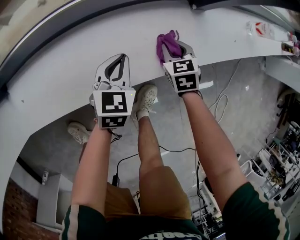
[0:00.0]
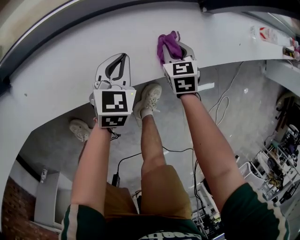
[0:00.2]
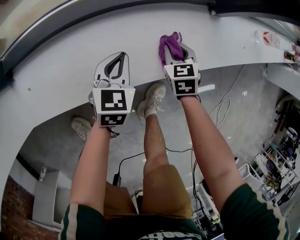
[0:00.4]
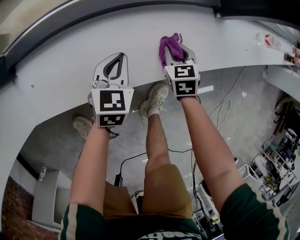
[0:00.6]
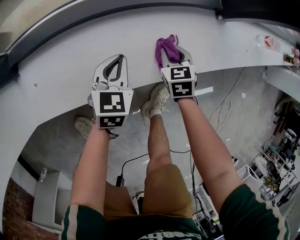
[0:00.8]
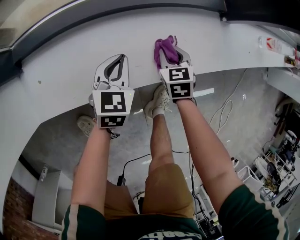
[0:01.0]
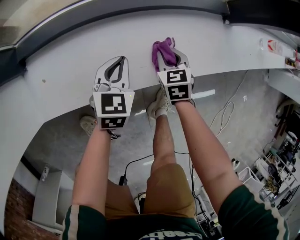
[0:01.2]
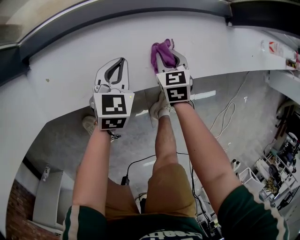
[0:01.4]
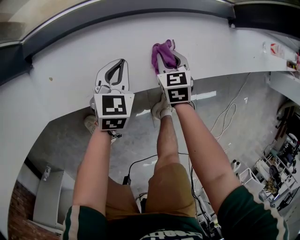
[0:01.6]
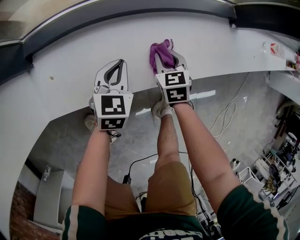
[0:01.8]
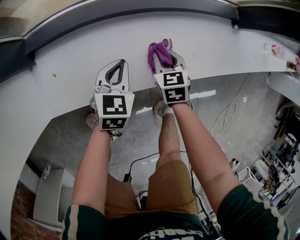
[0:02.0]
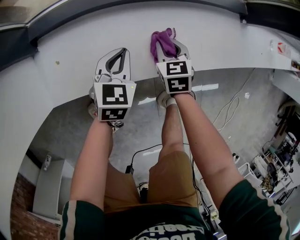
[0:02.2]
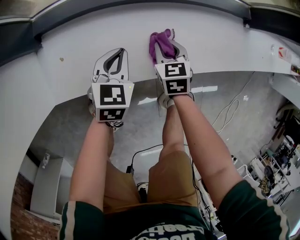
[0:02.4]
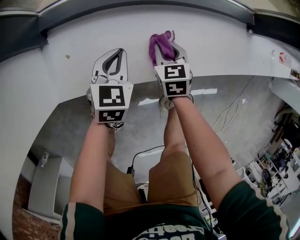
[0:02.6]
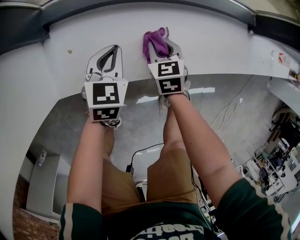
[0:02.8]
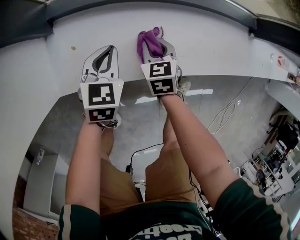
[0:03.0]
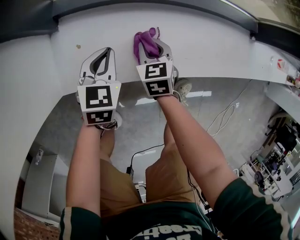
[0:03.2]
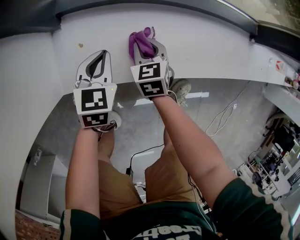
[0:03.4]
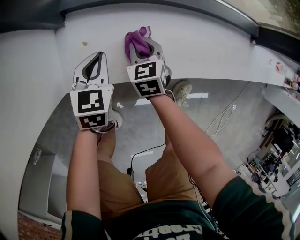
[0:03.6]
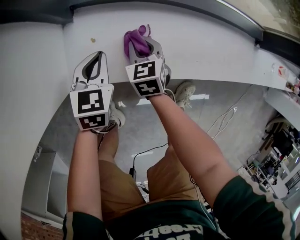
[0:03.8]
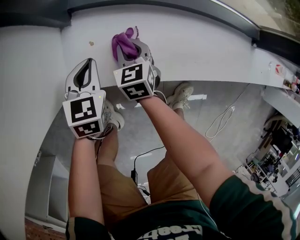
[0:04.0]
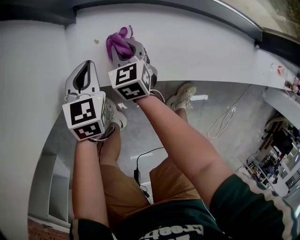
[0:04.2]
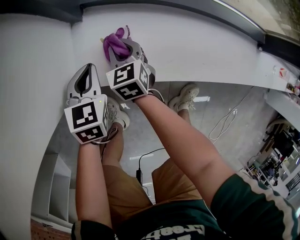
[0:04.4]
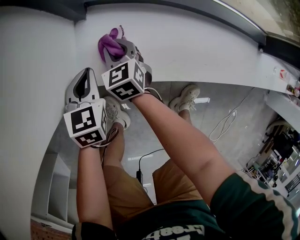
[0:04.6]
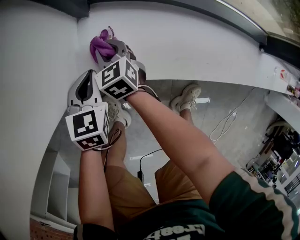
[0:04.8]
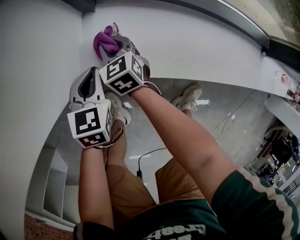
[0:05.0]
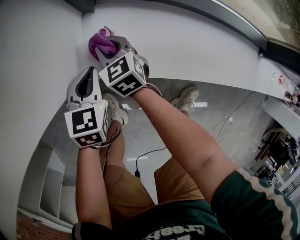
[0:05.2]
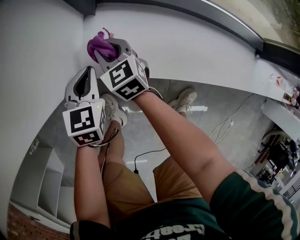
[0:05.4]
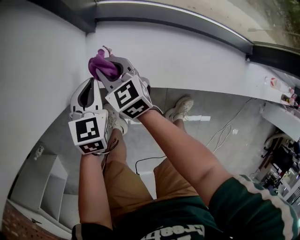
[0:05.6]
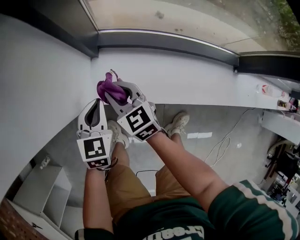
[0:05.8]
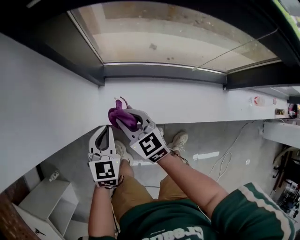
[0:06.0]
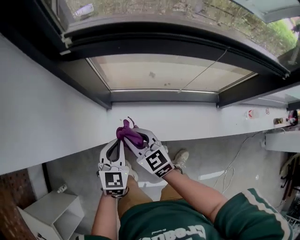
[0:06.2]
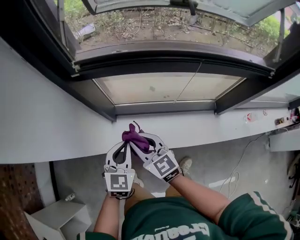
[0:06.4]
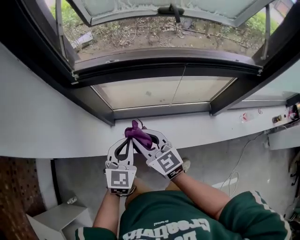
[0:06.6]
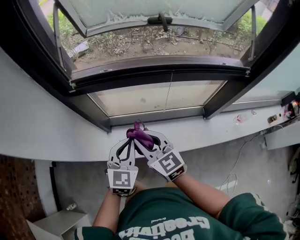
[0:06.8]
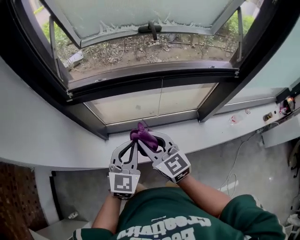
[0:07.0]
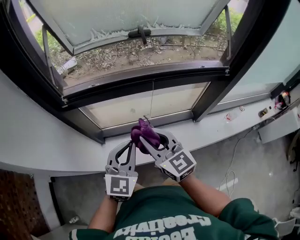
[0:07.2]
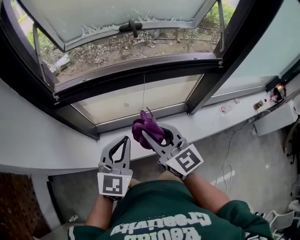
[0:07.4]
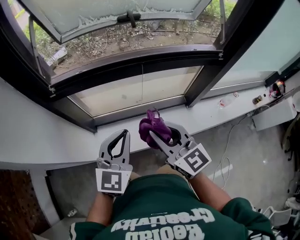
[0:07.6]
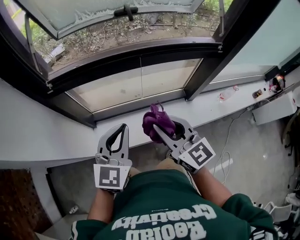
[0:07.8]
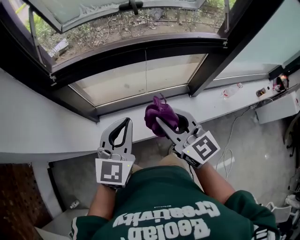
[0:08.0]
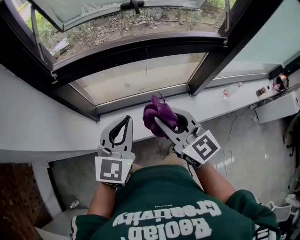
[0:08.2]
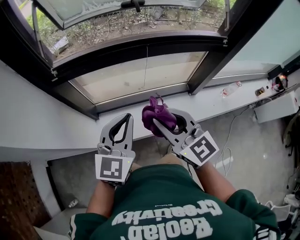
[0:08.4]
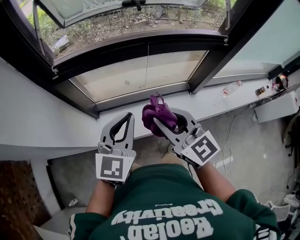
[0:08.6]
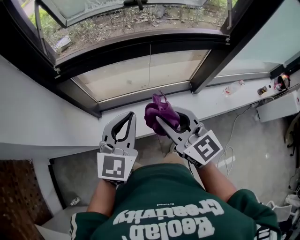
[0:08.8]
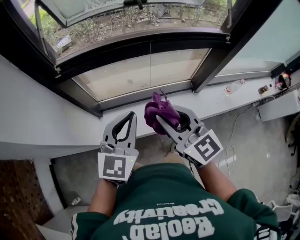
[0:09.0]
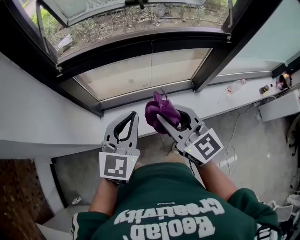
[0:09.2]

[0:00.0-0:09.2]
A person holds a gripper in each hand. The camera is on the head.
0:00.0 to 0:01.6: The grippers both shift to the left by about 20 cm.
0:01.6 to 0:03.0: Both grippers travel together to the left, some 15 cm.
0:03.0 to 0:04.6: Both grippers move to the left, about 20 cm. The left gripper turns by about 20 degrees.
0:04.6 to 0:06.2: Both grippers move upward, some 40 cm. The left gripper changes its angle by about 20 degrees, while the right gripper rotates approximately 30 degrees.
0:06.2 to 0:07.6: Both grippers travel together upward and to the right, some 35 cm. The left gripper swivels roughly 30 degrees; the right gripper swivels about 30 degrees.
0:07.6 to 0:09.2: There are only small adjustments of the grippers.

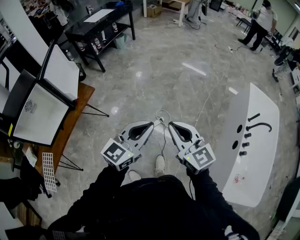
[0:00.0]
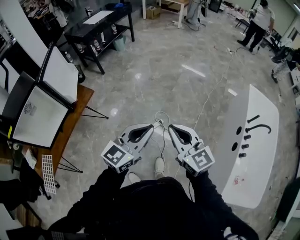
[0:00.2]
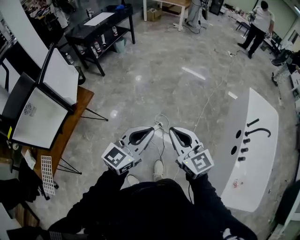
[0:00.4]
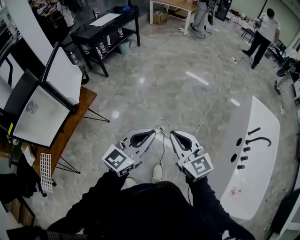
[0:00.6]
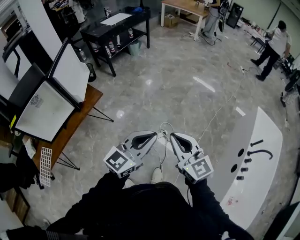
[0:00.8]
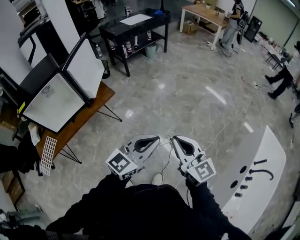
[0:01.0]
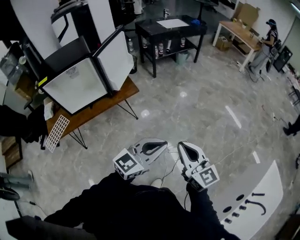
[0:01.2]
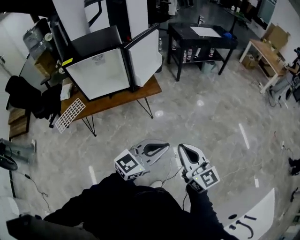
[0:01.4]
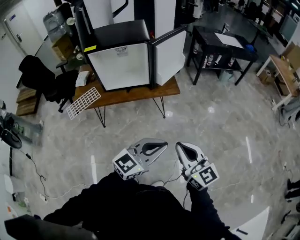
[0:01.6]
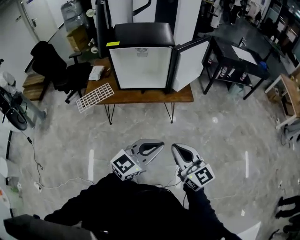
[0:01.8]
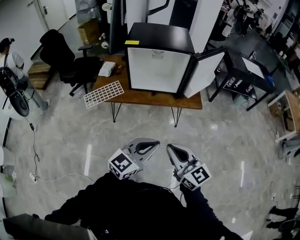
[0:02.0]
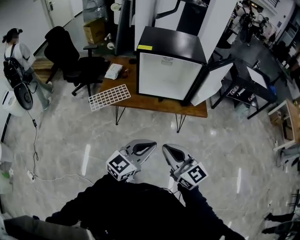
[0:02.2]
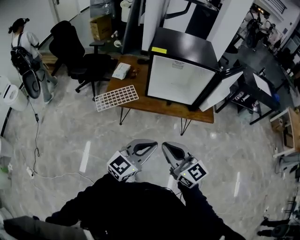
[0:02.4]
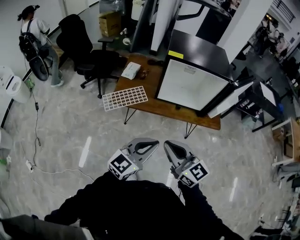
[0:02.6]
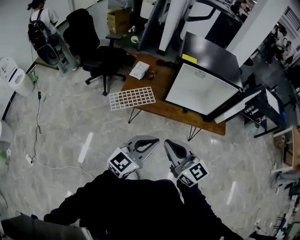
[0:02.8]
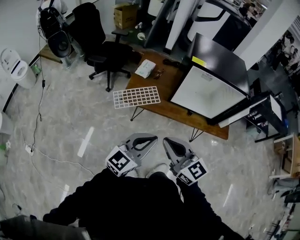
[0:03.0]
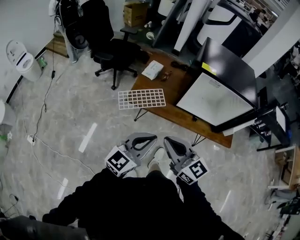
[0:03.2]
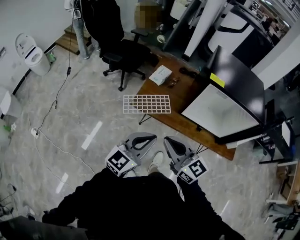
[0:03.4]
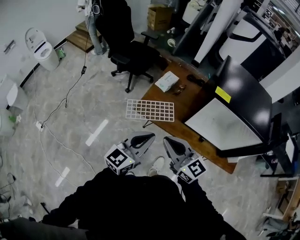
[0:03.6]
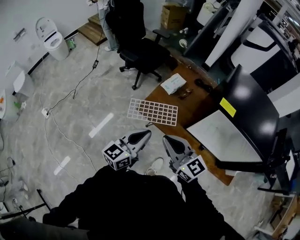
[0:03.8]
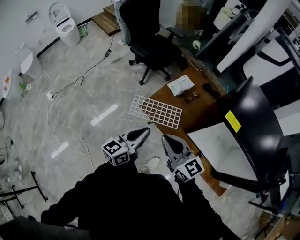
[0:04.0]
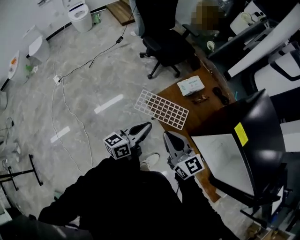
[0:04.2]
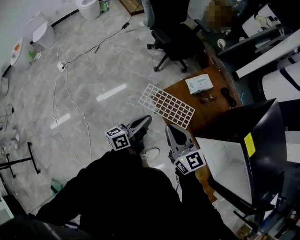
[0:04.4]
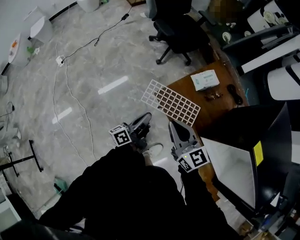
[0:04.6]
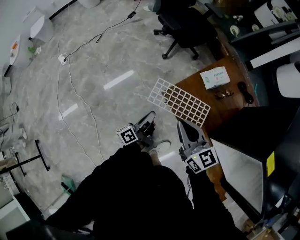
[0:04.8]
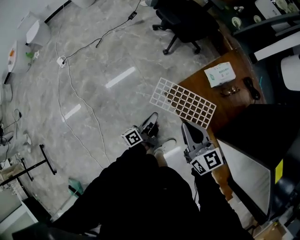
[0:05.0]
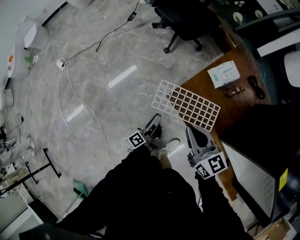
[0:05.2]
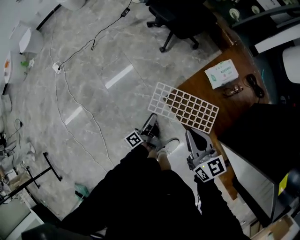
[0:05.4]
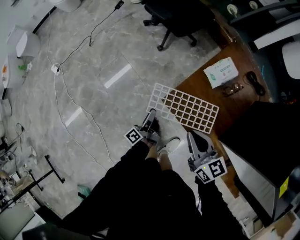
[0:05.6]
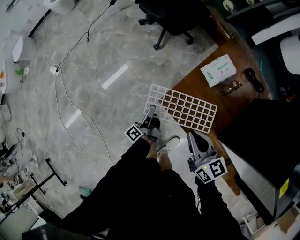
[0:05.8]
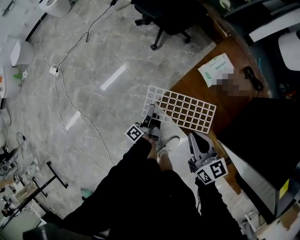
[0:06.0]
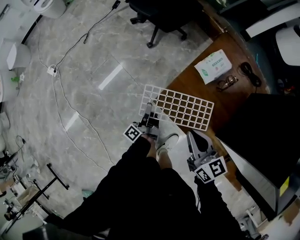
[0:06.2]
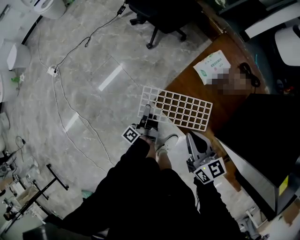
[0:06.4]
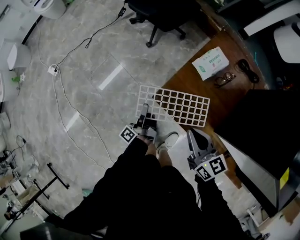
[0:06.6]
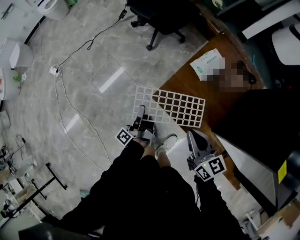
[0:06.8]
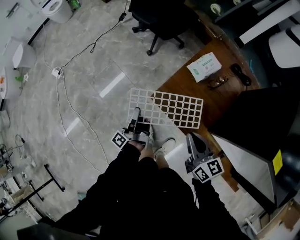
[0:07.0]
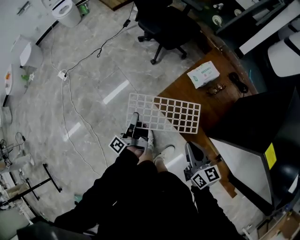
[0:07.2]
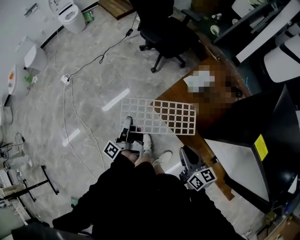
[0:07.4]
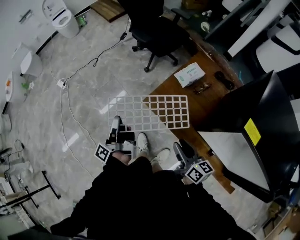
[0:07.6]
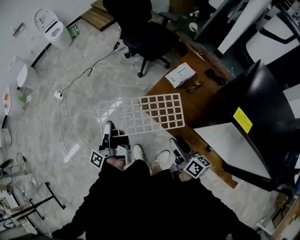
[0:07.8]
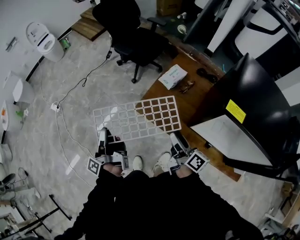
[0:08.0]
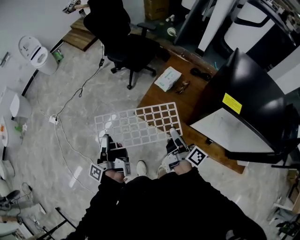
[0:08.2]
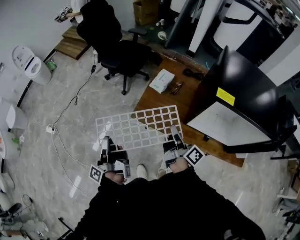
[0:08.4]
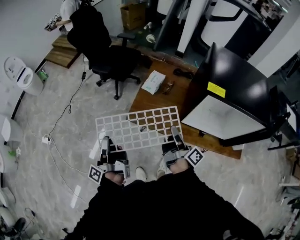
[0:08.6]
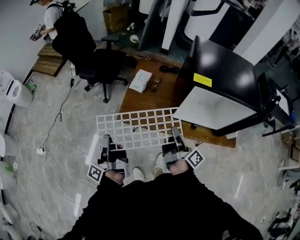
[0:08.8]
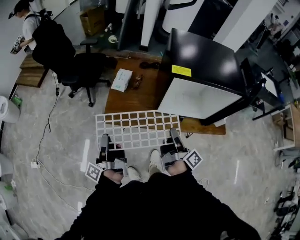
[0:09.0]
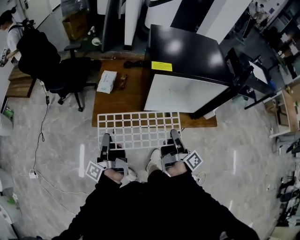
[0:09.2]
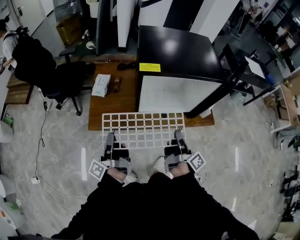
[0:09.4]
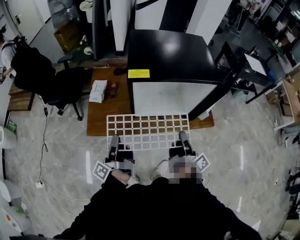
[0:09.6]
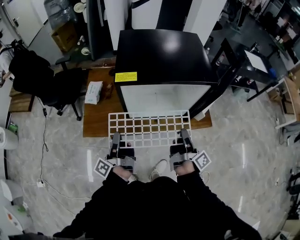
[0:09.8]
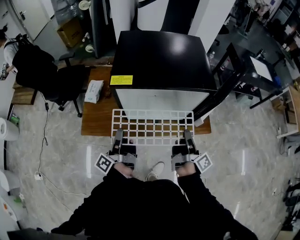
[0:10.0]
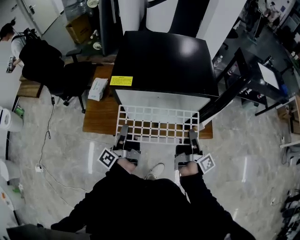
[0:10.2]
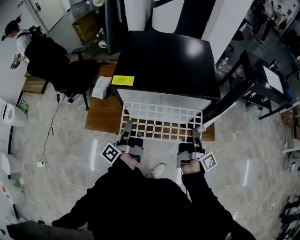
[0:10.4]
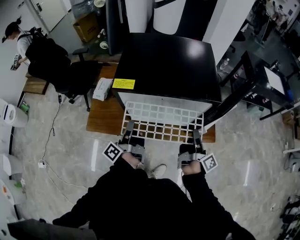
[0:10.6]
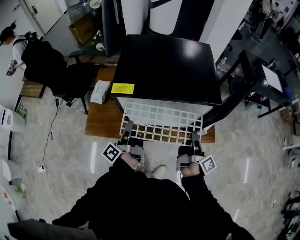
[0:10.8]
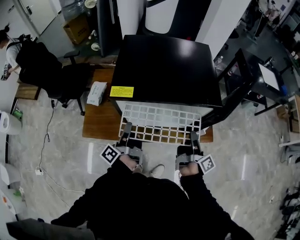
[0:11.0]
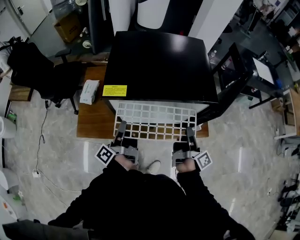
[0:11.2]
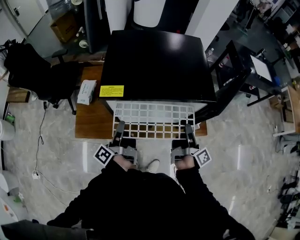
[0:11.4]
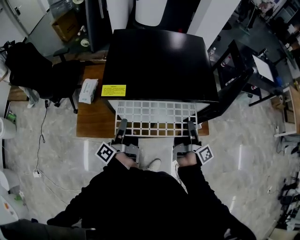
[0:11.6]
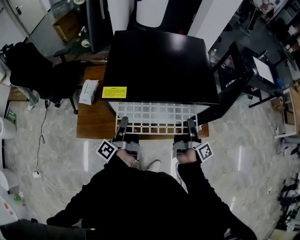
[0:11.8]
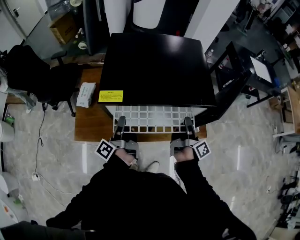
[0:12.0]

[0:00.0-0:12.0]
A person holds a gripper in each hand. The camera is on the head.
0:00.0 to 0:01.6: The left gripper shifts by approximately 25 cm, and swivels some 40 degrees. Meanwhile the right gripper changes place by approximately 30 cm, and swivels some 50 degrees.
0:01.6 to 0:03.0: The pair of grippers is taken approximately 50 cm. The right gripper turns by about 30 degrees, while the left gripper swivels some 30 degrees.
0:03.0 to 0:04.4: The left gripper ends up some 35 cm from where it was, and changes its angle by roughly 70 degrees. The right gripper shifts by approximately 30 cm, and changes its angle by roughly 30 degrees.
0:04.4 to 0:06.0: The right gripper heads downward and forward, covering approximately 20 cm, and turns by some 30 degrees, while the left gripper is displaced downward and forward by about 35 cm, changes its angle by roughly 40 degrees, and opens its fingers.
0:06.0 to 0:07.6: The right gripper travels backward and upward by about 15 cm, and opens, while the left gripper moves upward and backward, about 30 cm, and closes its fingers.
0:07.6 to 0:09.0: The left gripper moves some 15 cm, and swivels roughly 40 degrees; the right gripper changes place by roughly 15 cm, rotates some 70 degrees, and closes its fingers.
0:09.0 to 0:10.4: The right gripper is displaced to the right by approximately 35 cm. The left gripper goes approximately 35 cm to the right and forward.
0:10.4 to 0:12.0: Both grippers travel together forward, some 10 cm.

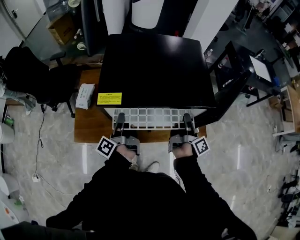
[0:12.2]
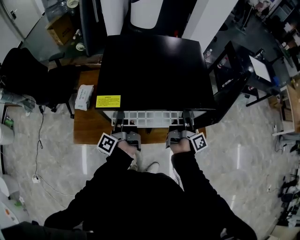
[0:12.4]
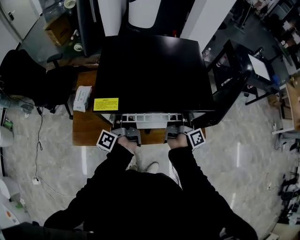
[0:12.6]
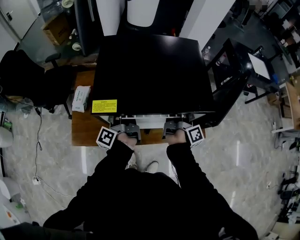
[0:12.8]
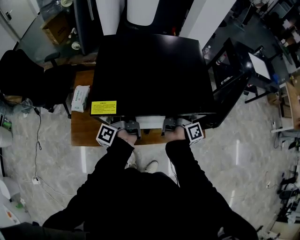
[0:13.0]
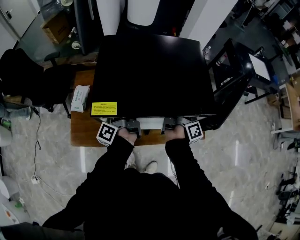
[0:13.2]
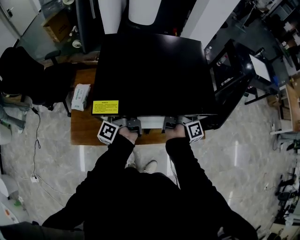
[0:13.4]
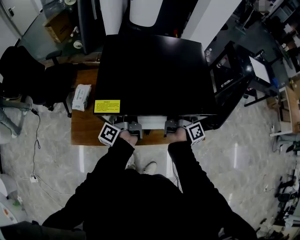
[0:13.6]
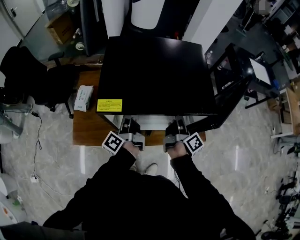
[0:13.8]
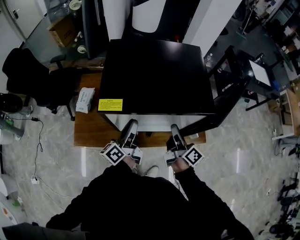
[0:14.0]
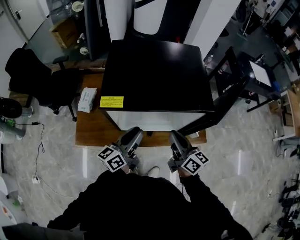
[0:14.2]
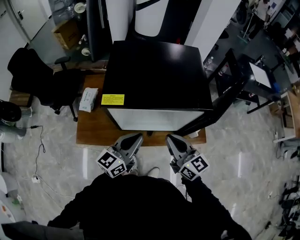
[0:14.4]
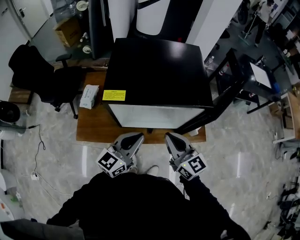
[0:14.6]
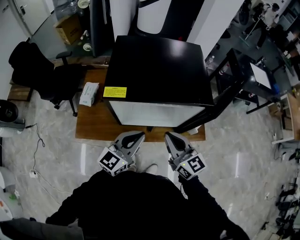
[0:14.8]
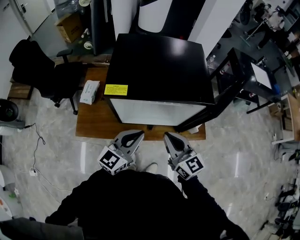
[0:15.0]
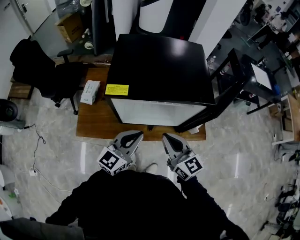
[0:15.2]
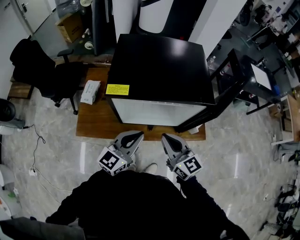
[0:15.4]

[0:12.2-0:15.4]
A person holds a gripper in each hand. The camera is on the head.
0:12.2 to 0:13.8: The left gripper heads forward, covering roughly 5 cm, while the right gripper opens.
0:13.8 to 0:15.4: The right gripper goes roughly 20 cm backward, to the left and upward, rolls counterclockwise, seen from behind, by roughly 60 degrees, and closes, while the left gripper heads backward and to the right, covering approximately 20 cm, rolls clockwise, seen from behind, by about 70 degrees, and closes.
